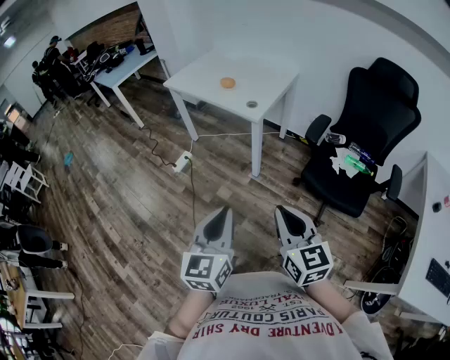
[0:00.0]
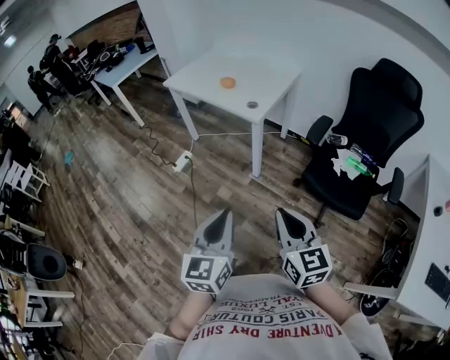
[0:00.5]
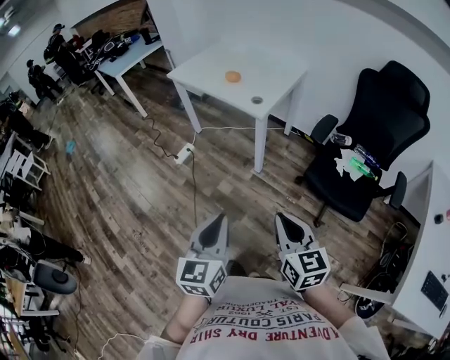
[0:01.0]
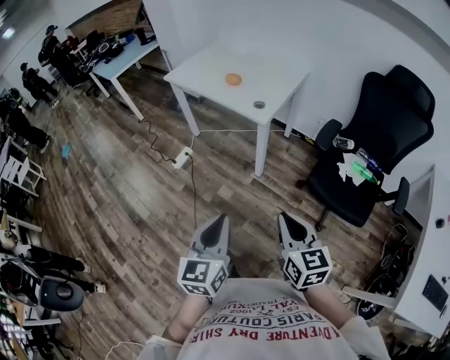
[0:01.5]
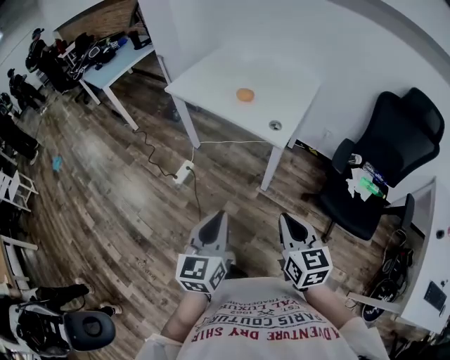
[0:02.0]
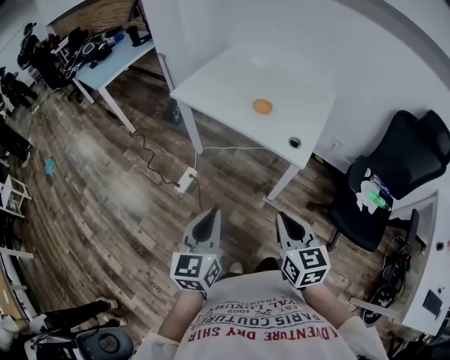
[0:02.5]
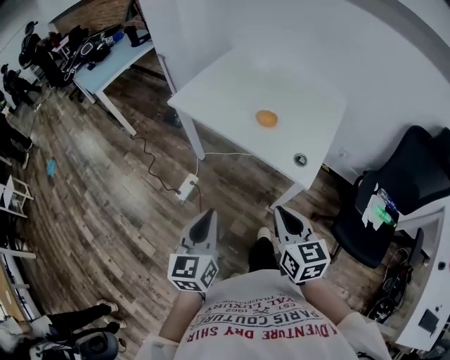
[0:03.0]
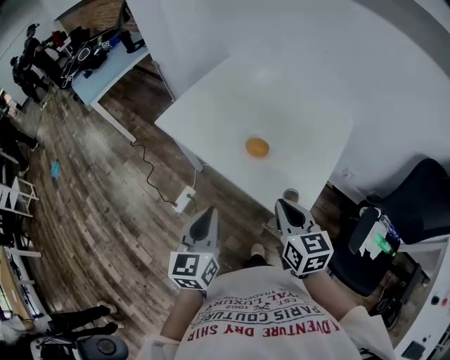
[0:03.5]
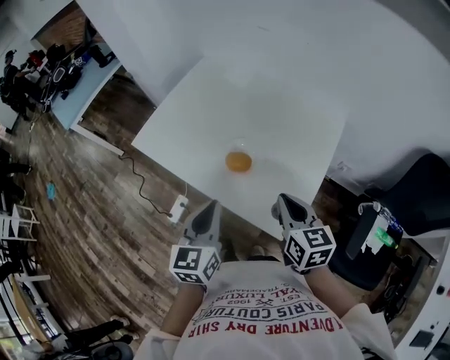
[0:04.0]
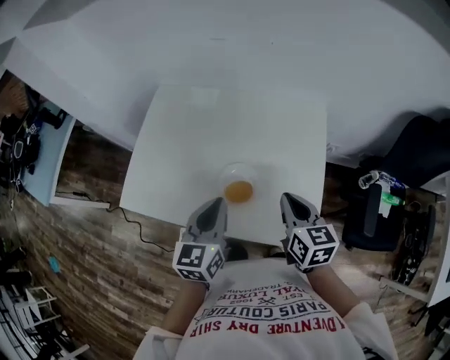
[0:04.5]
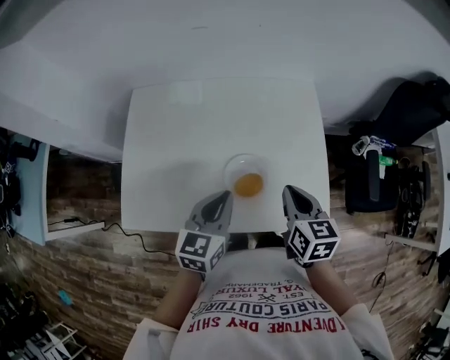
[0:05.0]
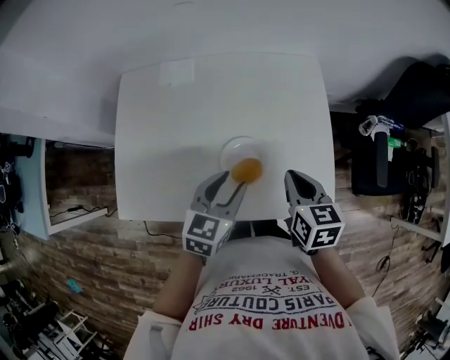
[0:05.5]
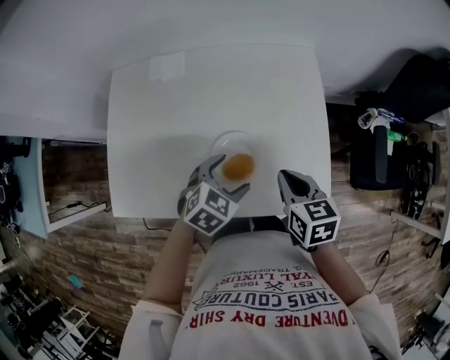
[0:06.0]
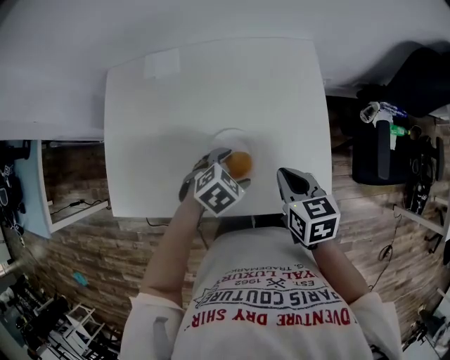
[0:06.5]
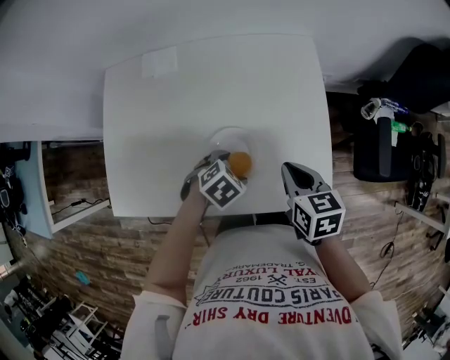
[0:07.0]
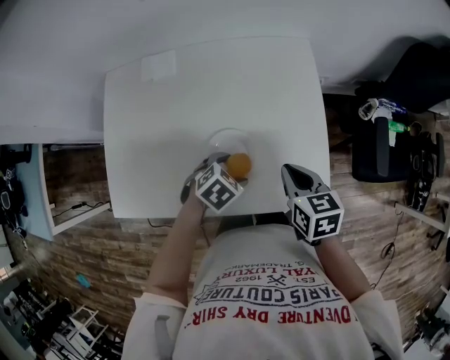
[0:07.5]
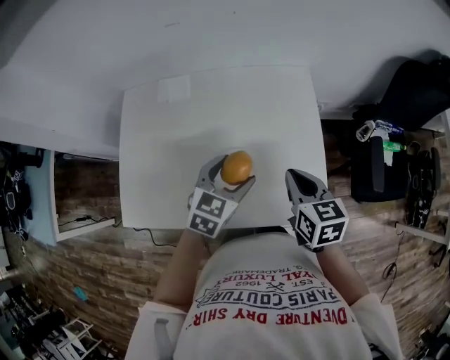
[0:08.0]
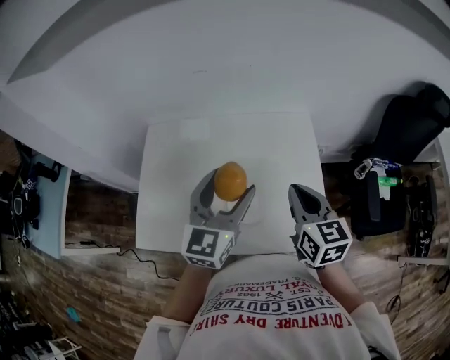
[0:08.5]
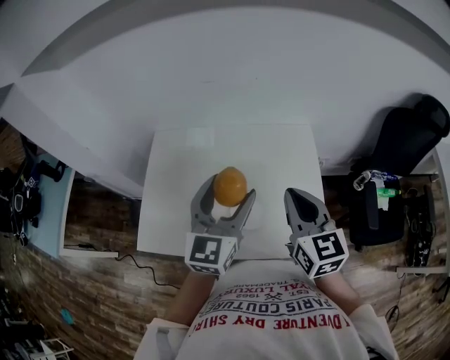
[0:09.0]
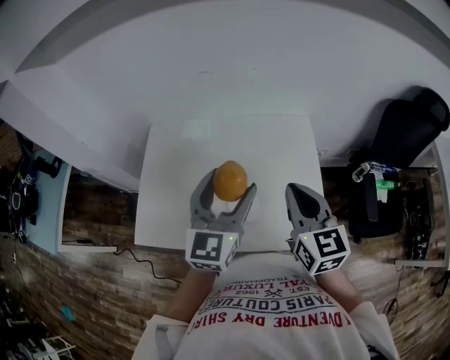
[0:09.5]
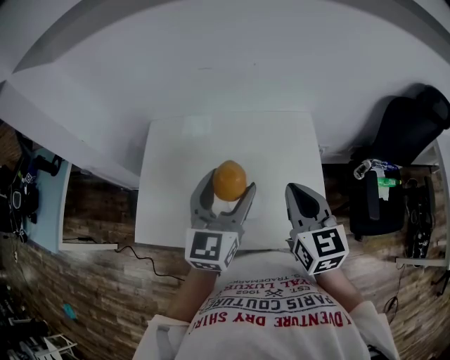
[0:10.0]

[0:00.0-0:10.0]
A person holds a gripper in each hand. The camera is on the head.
0:00.0 to 0:02.0: Both grippers move forward and to the left, approximately 25 cm.
0:02.0 to 0:04.0: The pair of grippers is taken forward, some 50 cm.
0:04.0 to 0:06.0: The left gripper moves about 20 cm, tips its fingers downward by some 30 degrees, and opens up; the right gripper ends up approximately 10 cm from where it was, and swivels some 30 degrees.
0:06.0 to 0:08.0: The right gripper changes place by approximately 5 cm. Meanwhile the left gripper moves upward, approximately 5 cm, and rotates roughly 20 degrees.
0:08.0 to 0:10.0: The two grippers go about 15 cm upward. The left gripper tilts its fingers some 30 degrees upward; the right gripper rotates some 20 degrees.

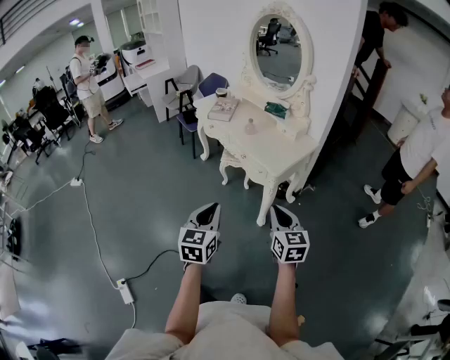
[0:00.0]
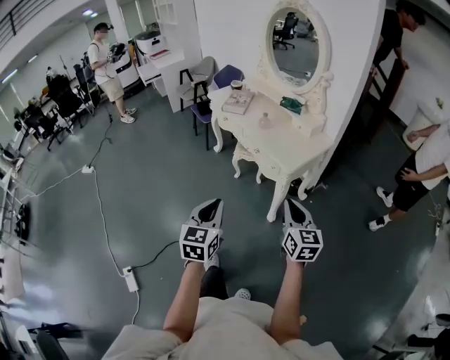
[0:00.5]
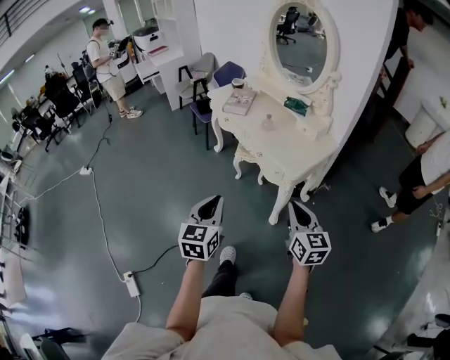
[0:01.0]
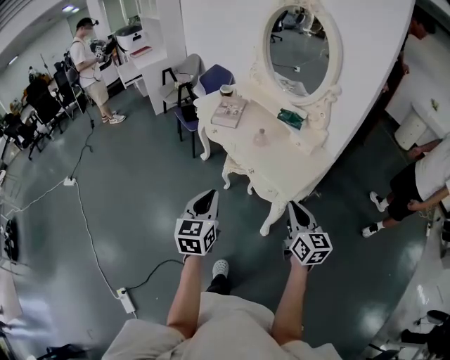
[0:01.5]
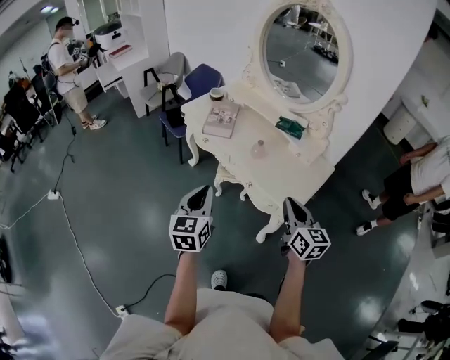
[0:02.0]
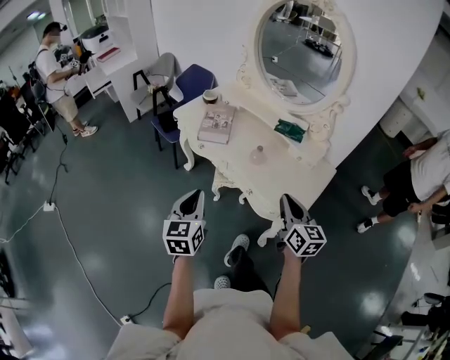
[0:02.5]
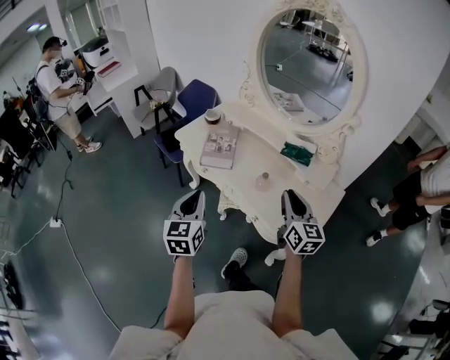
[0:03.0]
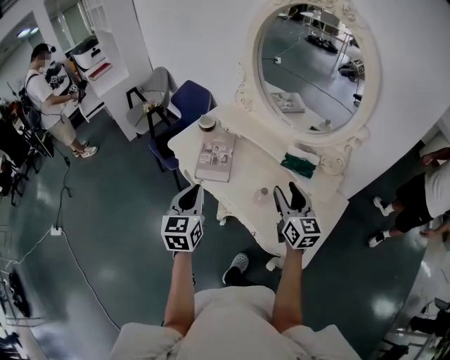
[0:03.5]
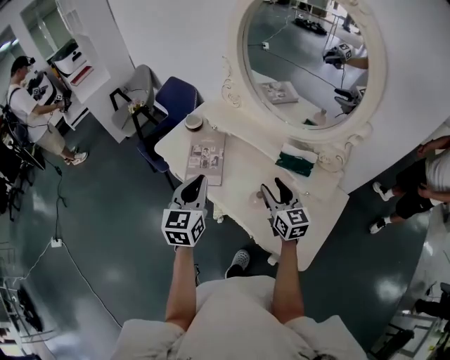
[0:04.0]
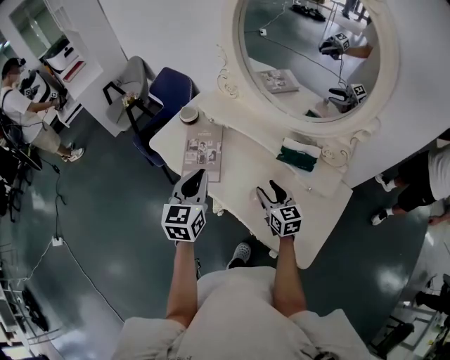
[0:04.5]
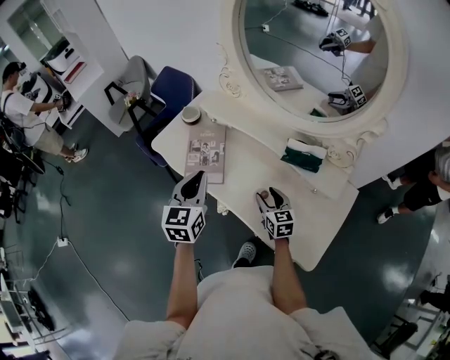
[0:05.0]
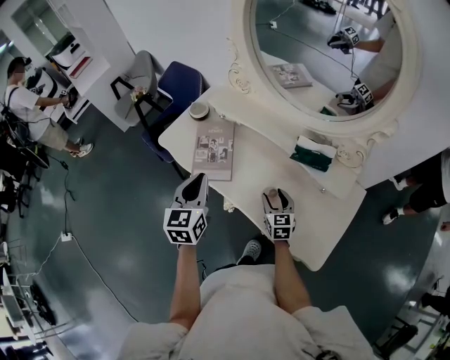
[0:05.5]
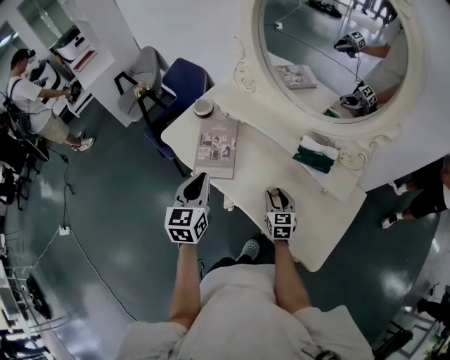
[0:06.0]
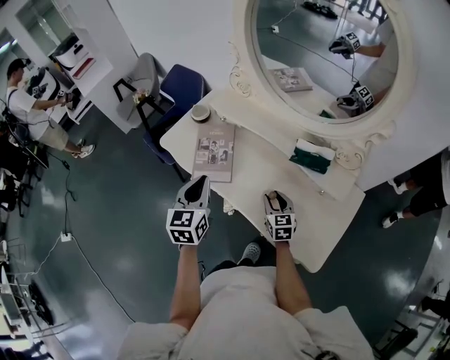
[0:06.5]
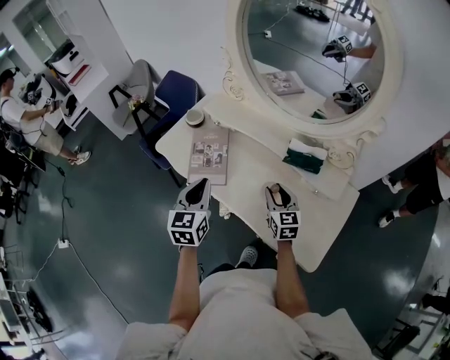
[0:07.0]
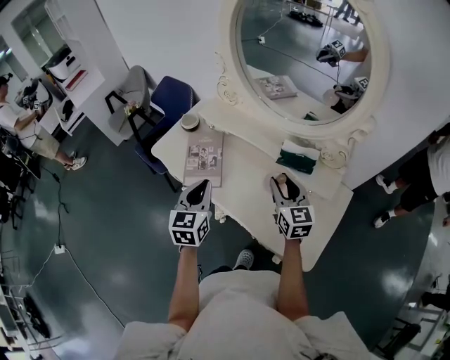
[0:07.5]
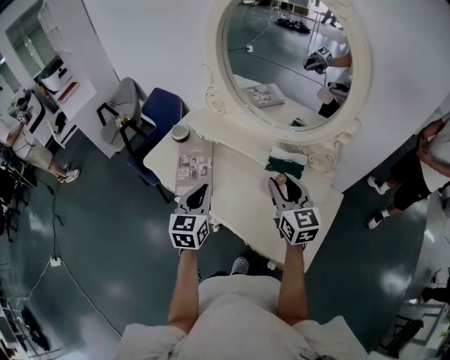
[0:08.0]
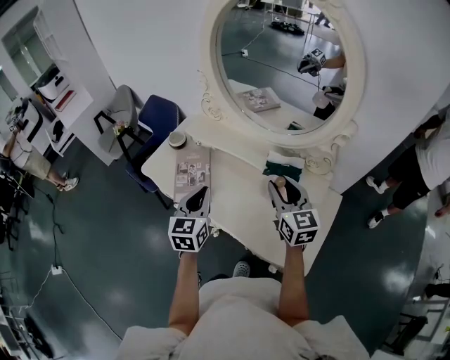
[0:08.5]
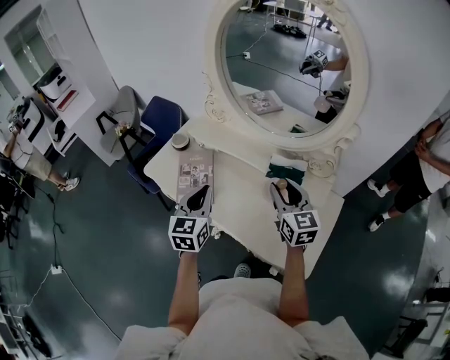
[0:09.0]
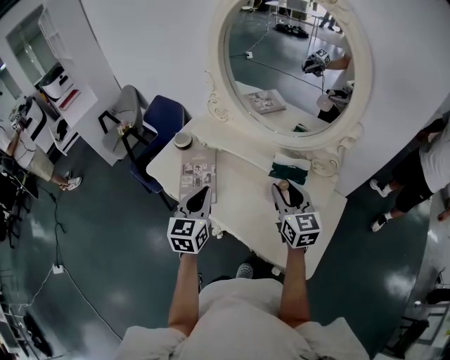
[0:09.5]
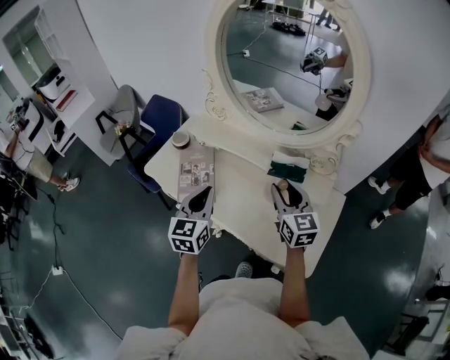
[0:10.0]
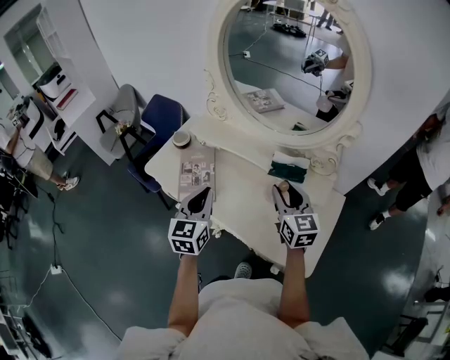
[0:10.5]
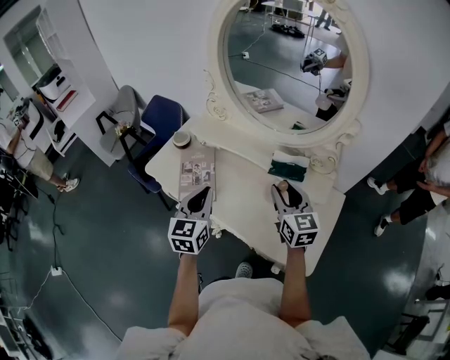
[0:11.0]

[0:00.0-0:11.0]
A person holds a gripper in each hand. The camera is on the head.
0:00.0 to 0:02.0: The grippers both shift forward by some 30 cm.
0:02.0 to 0:03.5: The two grippers go some 30 cm forward. The right gripper opens its fingers.
0:03.5 to 0:05.5: The left gripper shifts approximately 15 cm forward and downward; the right gripper shifts approximately 25 cm downward, and turns by roughly 30 degrees.
0:05.5 to 0:07.5: The right gripper shifts roughly 20 cm upward.
0:07.5 to 0:09.0: The right gripper heads upward, covering some 5 cm.
0:09.0 to 0:11.0: The grippers make only small movements.

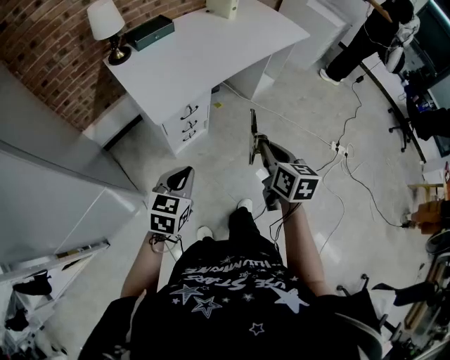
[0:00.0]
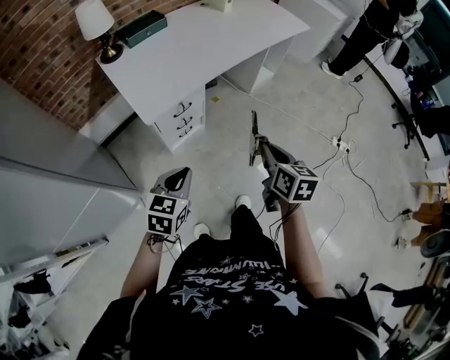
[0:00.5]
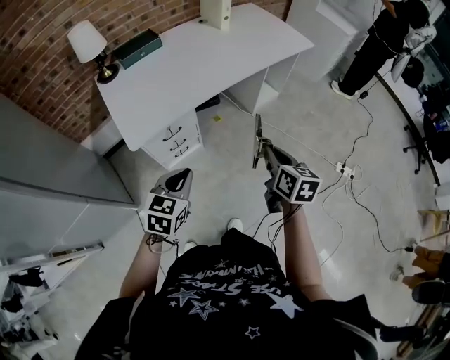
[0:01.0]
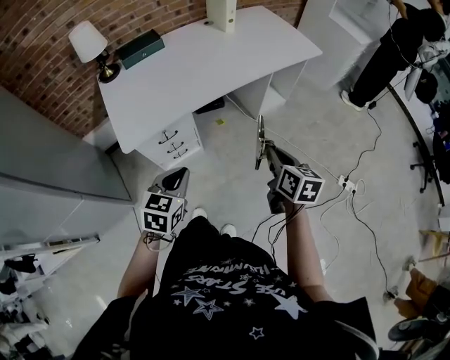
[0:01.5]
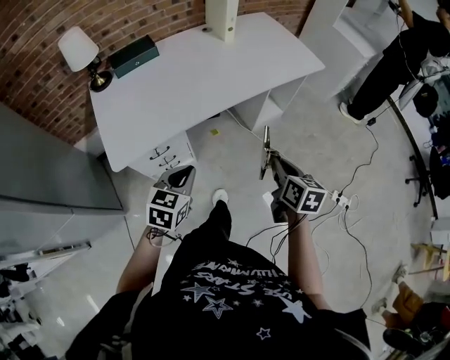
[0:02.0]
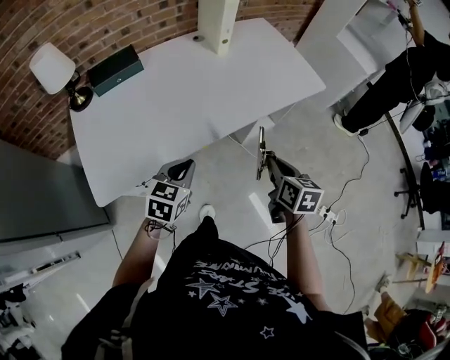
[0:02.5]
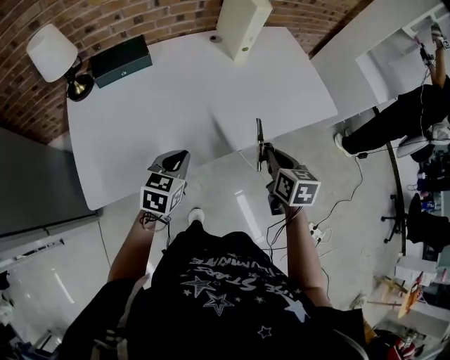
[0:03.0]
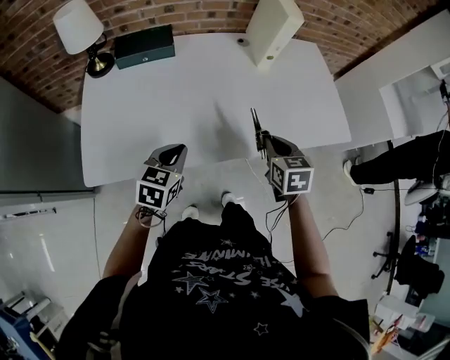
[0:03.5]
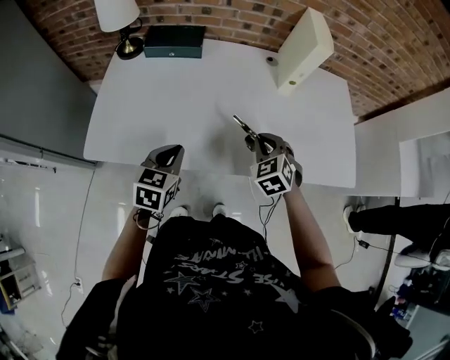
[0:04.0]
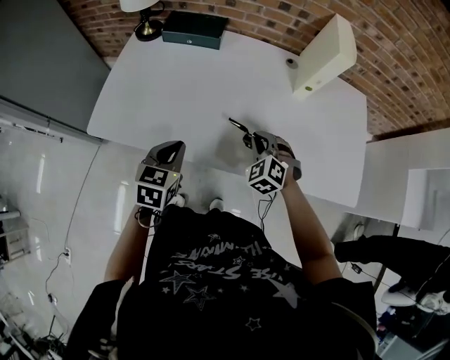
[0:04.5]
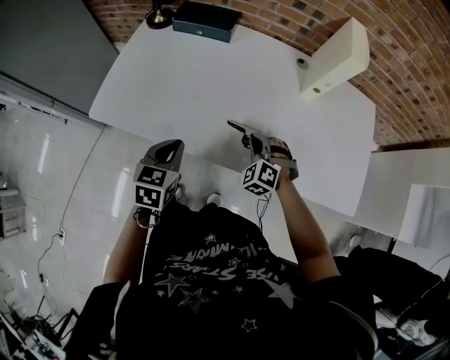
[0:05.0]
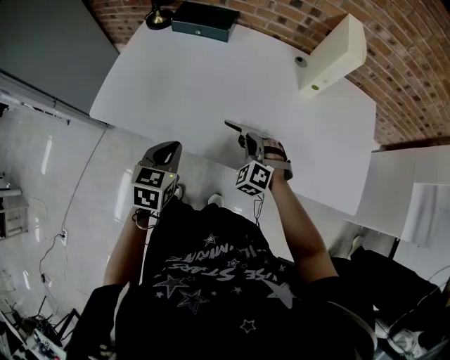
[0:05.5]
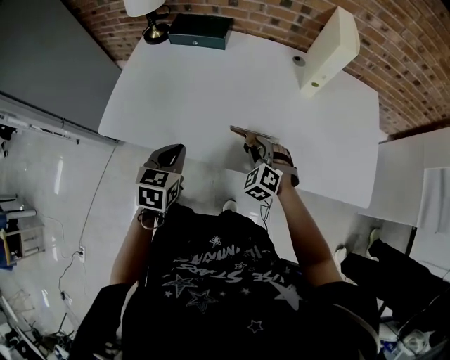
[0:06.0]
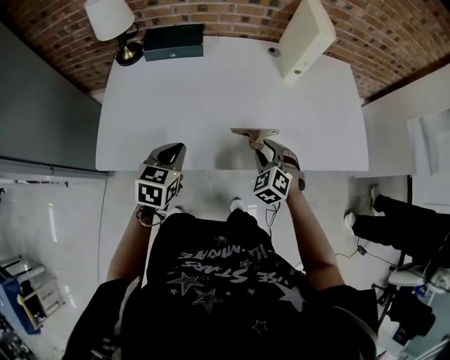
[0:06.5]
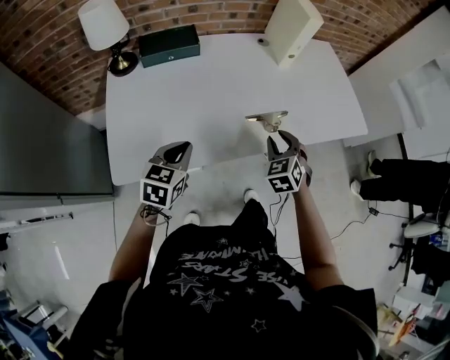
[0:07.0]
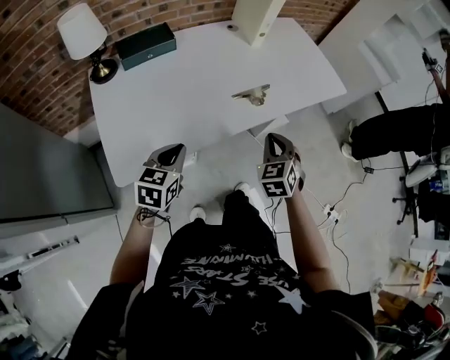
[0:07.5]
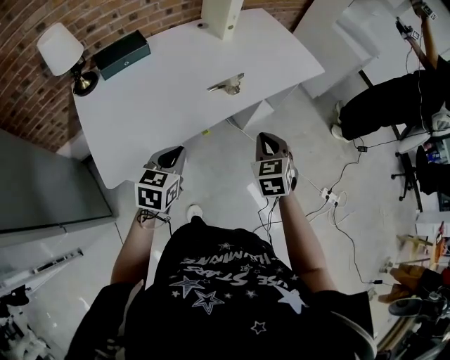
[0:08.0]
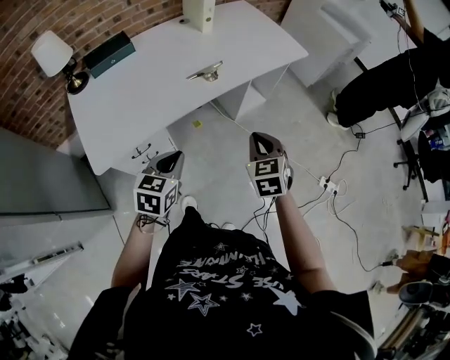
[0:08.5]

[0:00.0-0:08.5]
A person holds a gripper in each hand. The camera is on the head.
0:00.0 to 0:02.0: Both grippers move forward and to the right, about 35 cm.
0:02.0 to 0:04.0: The left gripper changes place by some 30 cm, and changes its angle by approximately 40 degrees. The right gripper moves roughly 40 cm, and rolls counterclockwise, seen from behind, by roughly 80 degrees.
0:04.0 to 0:06.5: The right gripper travels downward by some 5 cm, and opens up.
0:06.5 to 0:08.5: The right gripper shifts by some 35 cm, rolls clockwise, seen from behind, by some 50 degrees, and closes its fingers; the left gripper shifts by some 25 cm, and rotates roughly 30 degrees.
